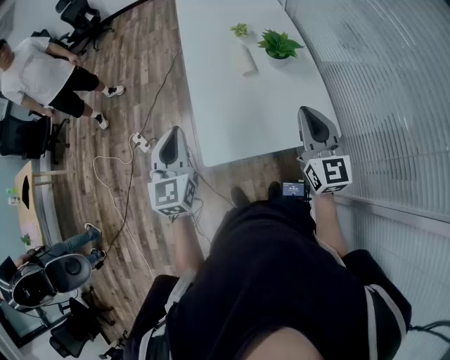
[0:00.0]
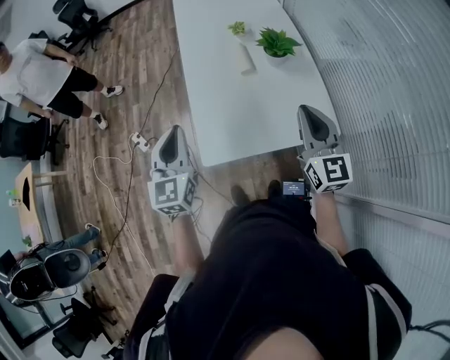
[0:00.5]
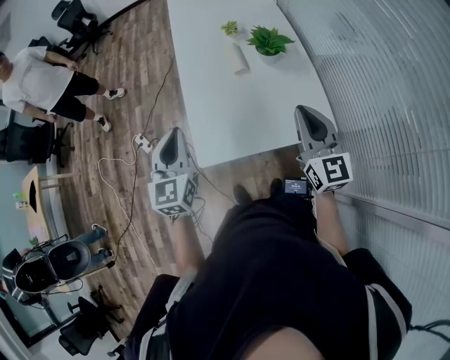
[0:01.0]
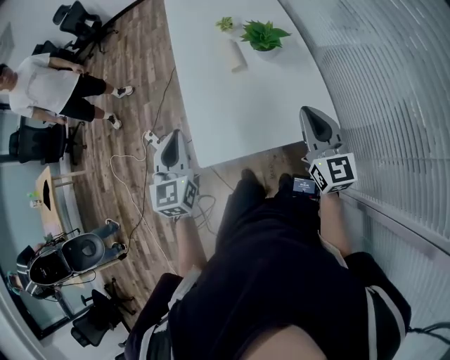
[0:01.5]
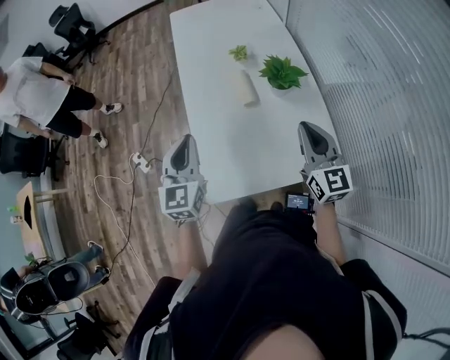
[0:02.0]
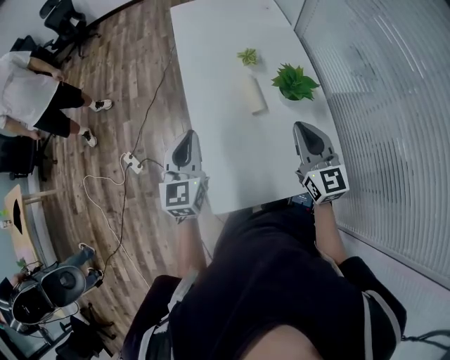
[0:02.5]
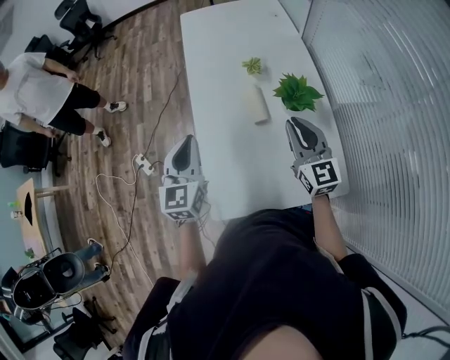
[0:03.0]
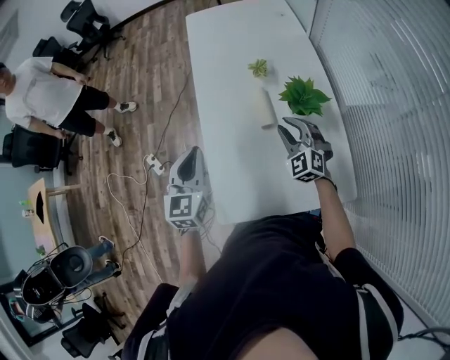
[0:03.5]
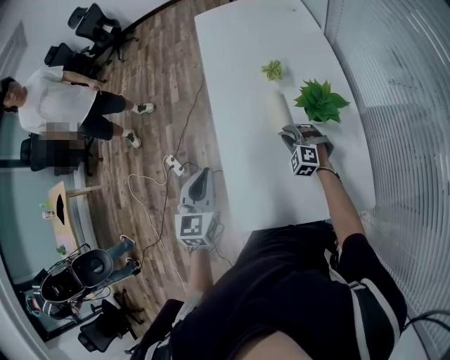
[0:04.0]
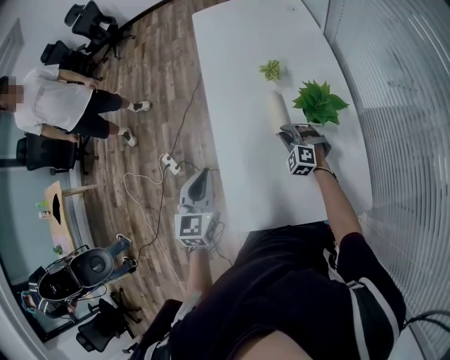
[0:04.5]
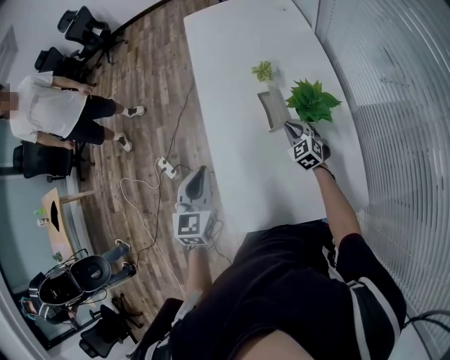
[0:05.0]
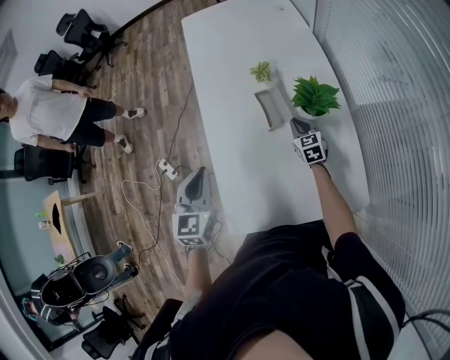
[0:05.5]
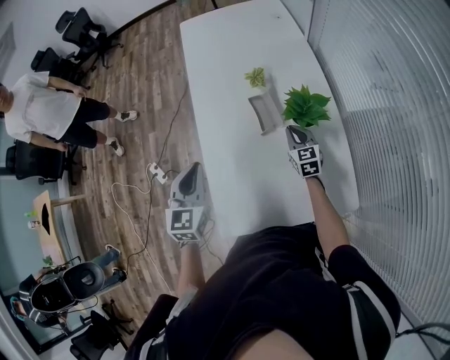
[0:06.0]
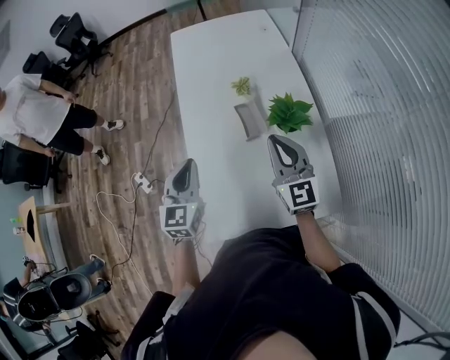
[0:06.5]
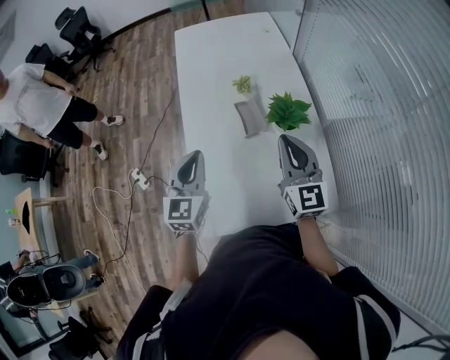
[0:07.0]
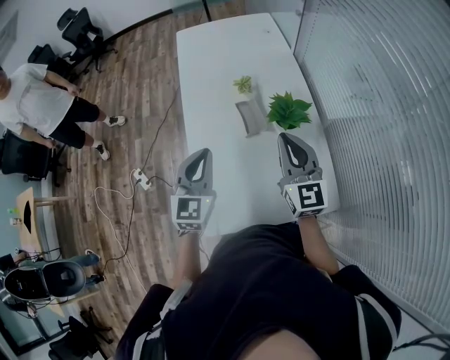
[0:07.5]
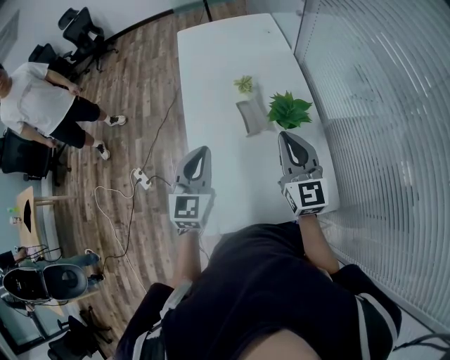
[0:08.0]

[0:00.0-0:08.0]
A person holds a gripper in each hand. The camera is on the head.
0:00.0 to 0:02.0: The grippers both shift forward by some 10 cm.
0:02.0 to 0:04.0: The left gripper goes roughly 5 cm forward; the right gripper shifts some 35 cm downward, forward and to the left, and tilts its fingers roughly 40 degrees downward.
0:04.0 to 0:06.0: The right gripper travels to the right by approximately 10 cm, and rolls clockwise, seen from behind, by roughly 60 degrees.
0:06.0 to 0:08.0: The left gripper is displaced to the right and upward by some 10 cm. Meanwhile the right gripper shifts roughly 30 cm upward and backward, and swivels some 30 degrees.

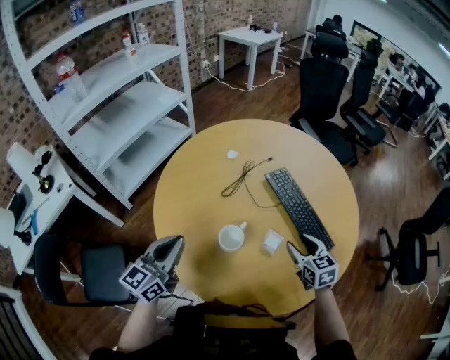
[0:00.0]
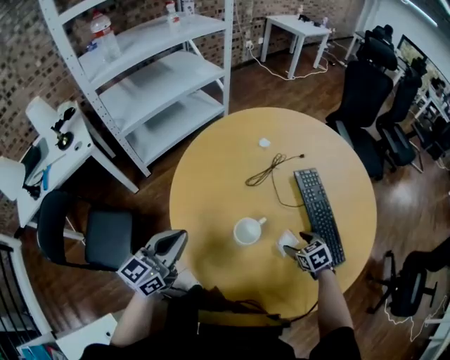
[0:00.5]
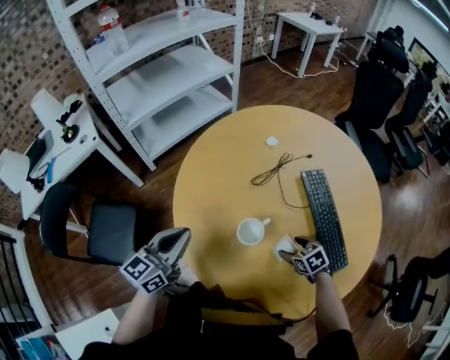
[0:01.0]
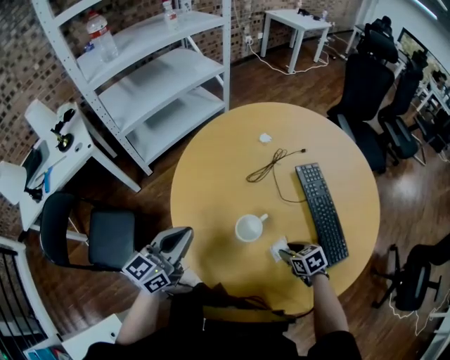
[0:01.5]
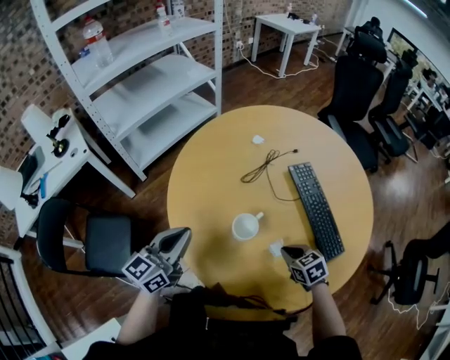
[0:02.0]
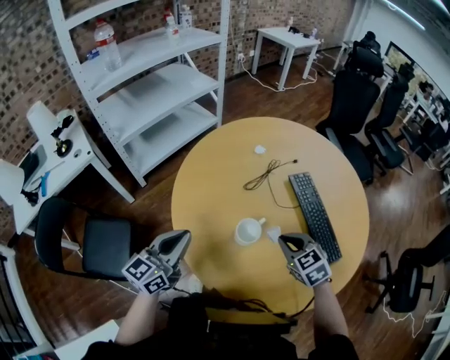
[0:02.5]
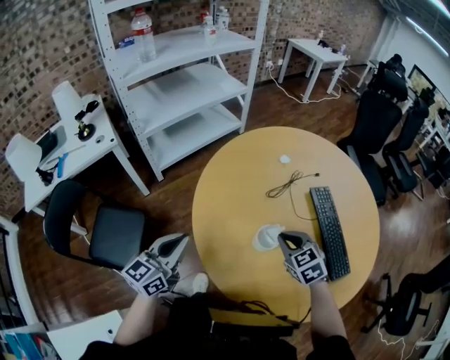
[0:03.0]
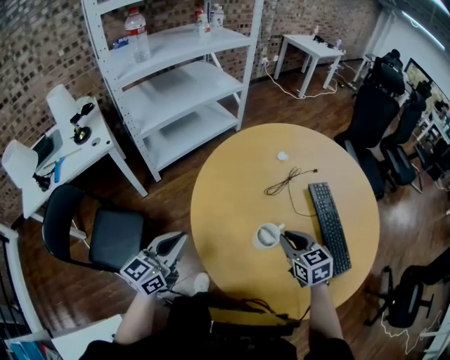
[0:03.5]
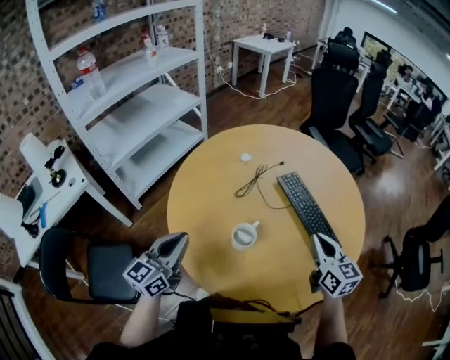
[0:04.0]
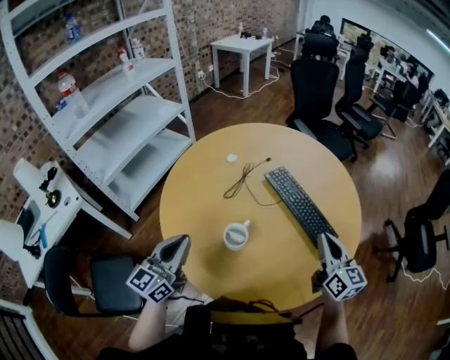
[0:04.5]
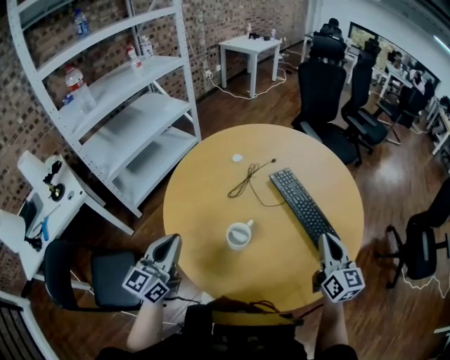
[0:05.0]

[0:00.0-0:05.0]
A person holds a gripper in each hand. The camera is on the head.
0:00.0 to 0:02.5: The right gripper travels to the left by about 10 cm, goes downward and returns, approximately 15 cm each way, rotates roughly 30 degrees, and closes.
0:02.5 to 0:05.0: The left gripper goes to the left and returns, roughly 10 cm each way. The right gripper goes roughly 20 cm to the right and upward, and angles its fingers upward, by approximately 40 degrees.

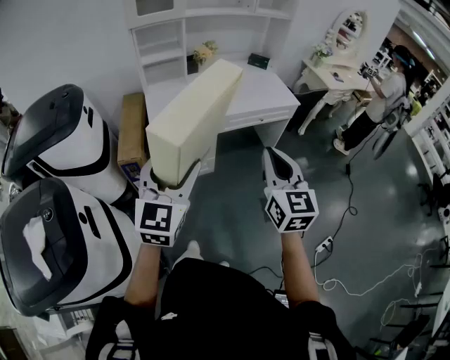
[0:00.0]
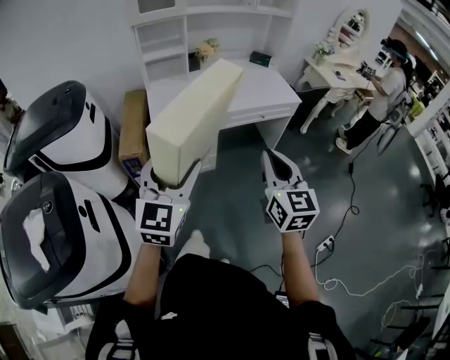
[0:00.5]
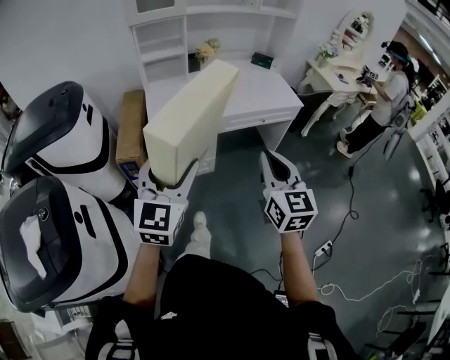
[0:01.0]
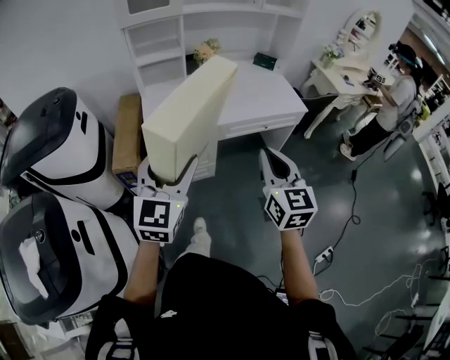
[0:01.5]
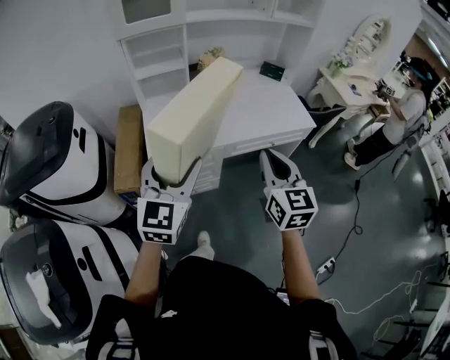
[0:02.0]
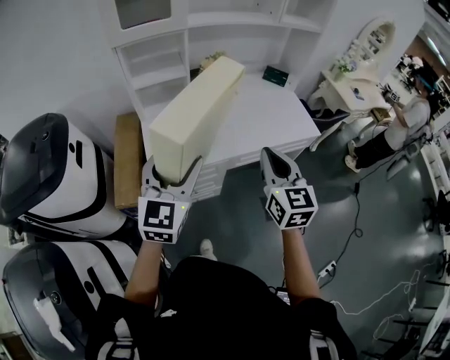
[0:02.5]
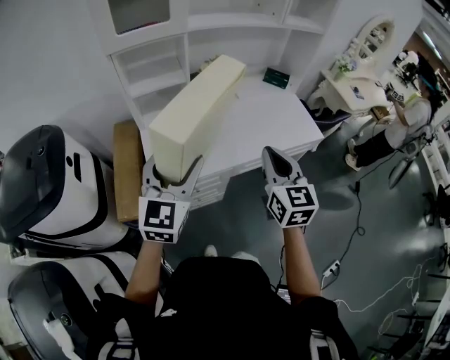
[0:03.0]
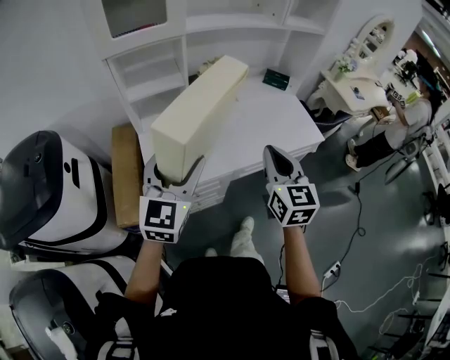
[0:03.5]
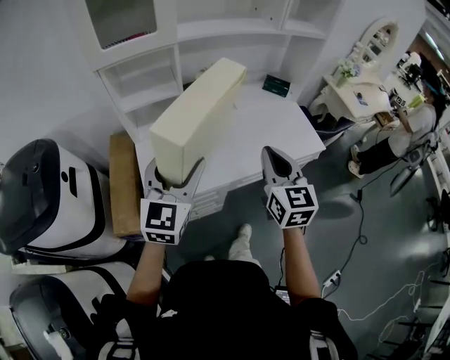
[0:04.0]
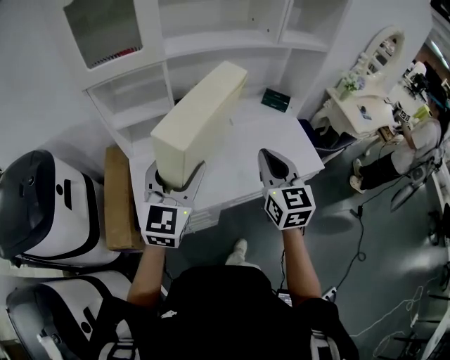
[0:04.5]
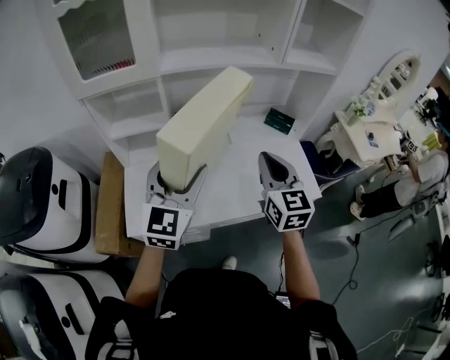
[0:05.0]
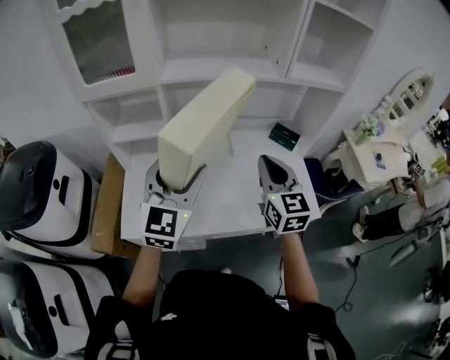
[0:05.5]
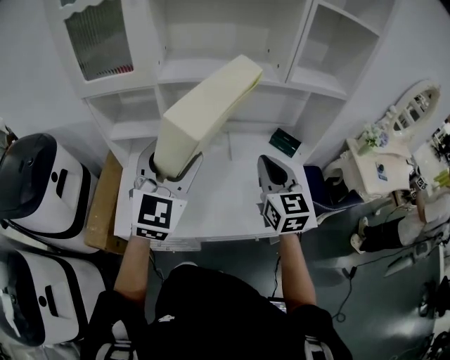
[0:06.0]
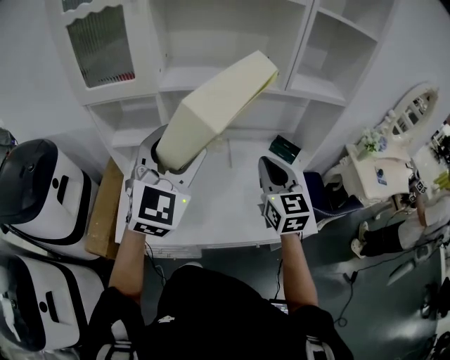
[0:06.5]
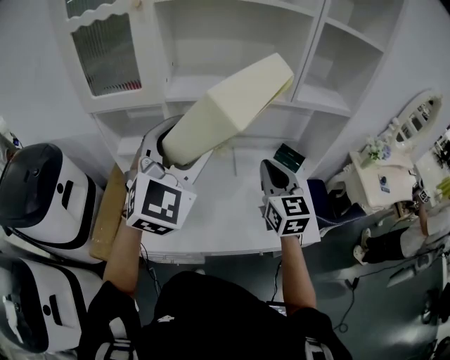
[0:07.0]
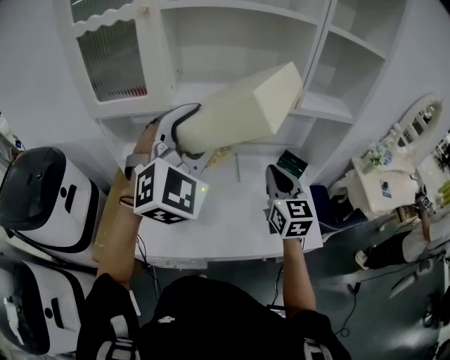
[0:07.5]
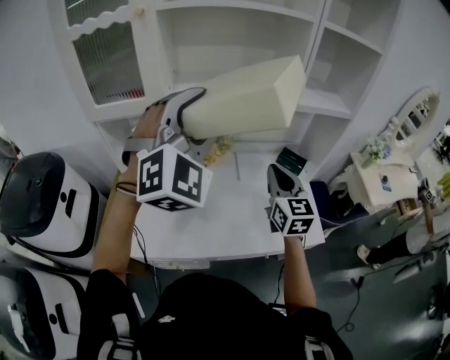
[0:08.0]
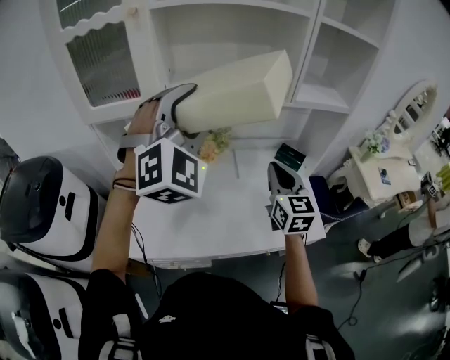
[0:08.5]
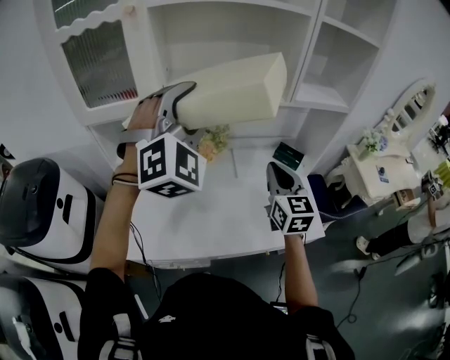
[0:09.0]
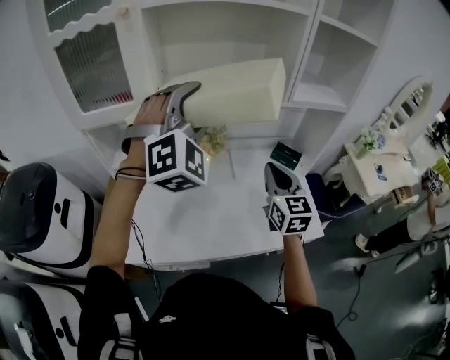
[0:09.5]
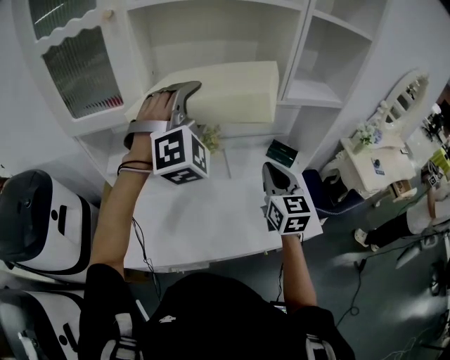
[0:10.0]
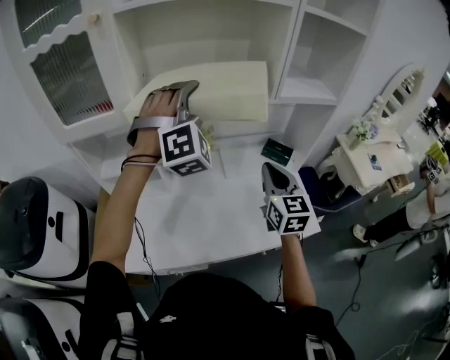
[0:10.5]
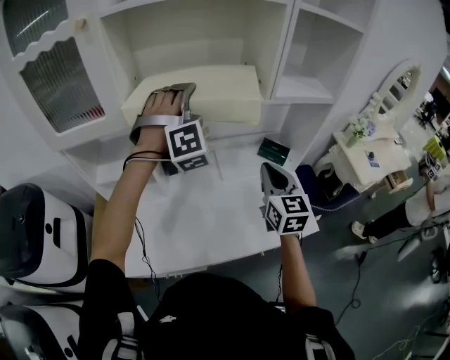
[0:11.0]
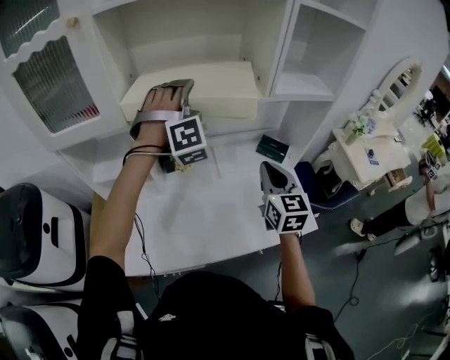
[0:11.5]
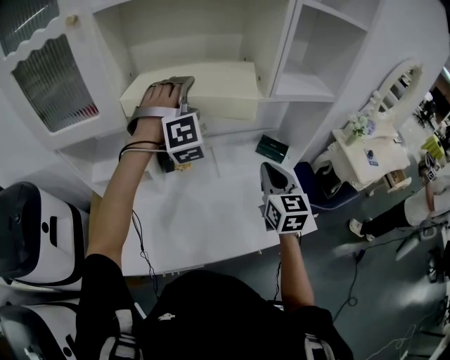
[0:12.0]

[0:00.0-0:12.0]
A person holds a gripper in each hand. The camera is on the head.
0:00.0 to 0:02.0: Both grippers travel together forward, roughly 25 cm.
0:02.0 to 0:04.0: The grippers both shift forward by some 20 cm.
0:04.0 to 0:06.0: The right gripper goes roughly 25 cm forward and to the right, while the left gripper shifts some 25 cm forward, to the right and upward, and swivels approximately 20 degrees.
0:06.0 to 0:08.0: The left gripper goes about 15 cm upward and forward, and turns by roughly 40 degrees.
0:08.0 to 0:10.0: The left gripper shifts roughly 10 cm forward.
0:10.0 to 0:12.0: The left gripper is displaced forward and downward by some 15 cm. The right gripper ends up about 5 cm from where it was.

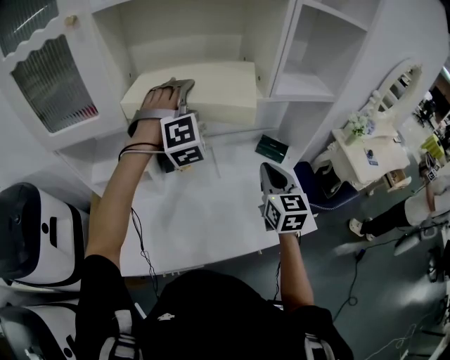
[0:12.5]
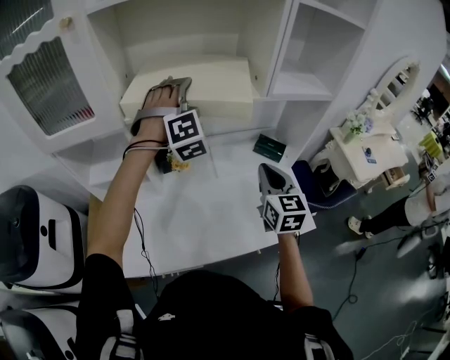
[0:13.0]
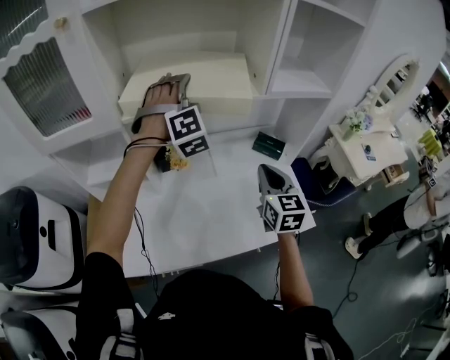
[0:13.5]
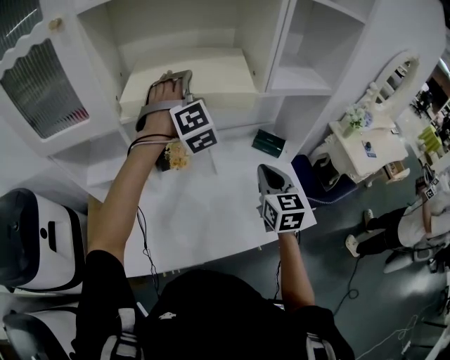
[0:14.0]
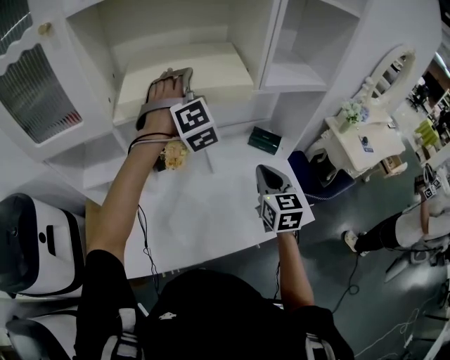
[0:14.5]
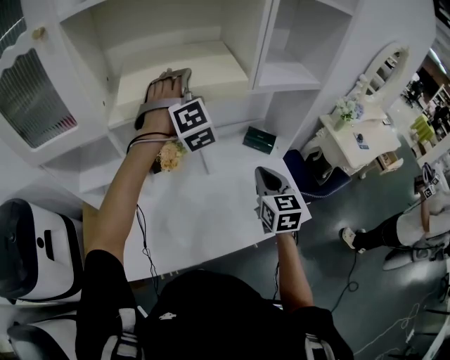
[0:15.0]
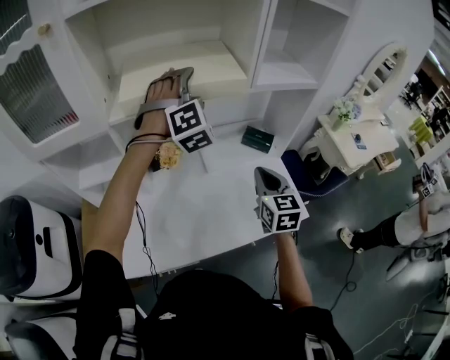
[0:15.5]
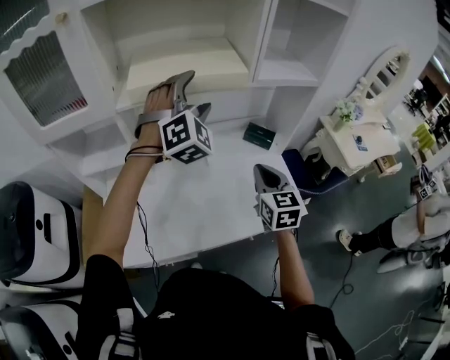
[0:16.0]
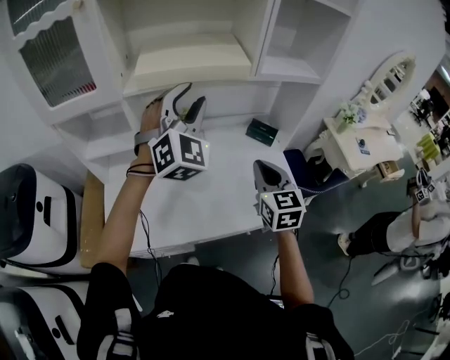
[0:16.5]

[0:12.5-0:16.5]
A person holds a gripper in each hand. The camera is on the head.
0:12.5 to 0:14.5: The left gripper shifts by approximately 5 cm.
0:14.5 to 0:16.5: The right gripper moves backward, some 10 cm, while the left gripper travels backward by about 15 cm, changes its angle by about 30 degrees, and closes up.
